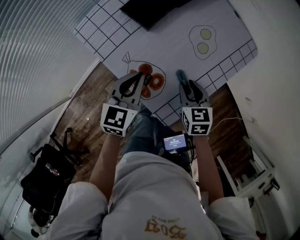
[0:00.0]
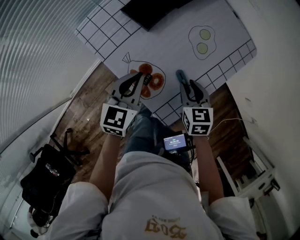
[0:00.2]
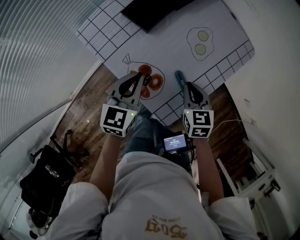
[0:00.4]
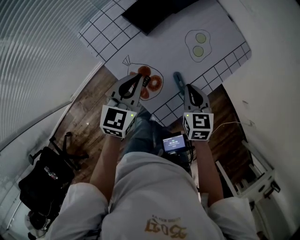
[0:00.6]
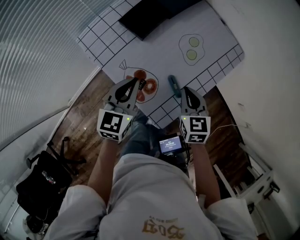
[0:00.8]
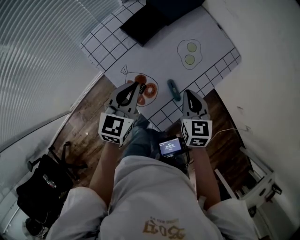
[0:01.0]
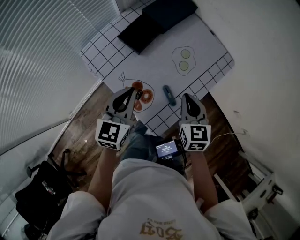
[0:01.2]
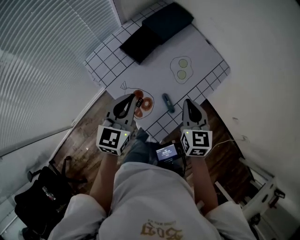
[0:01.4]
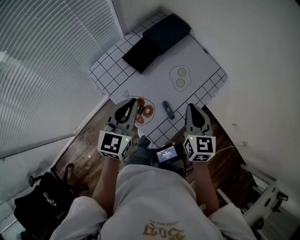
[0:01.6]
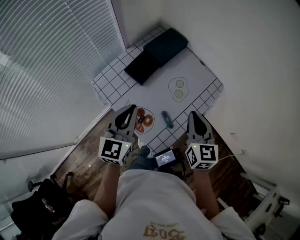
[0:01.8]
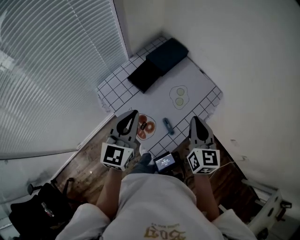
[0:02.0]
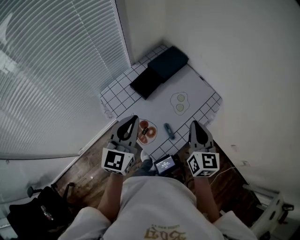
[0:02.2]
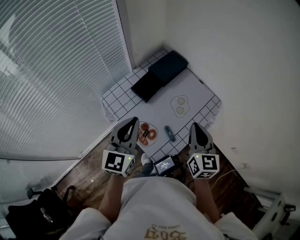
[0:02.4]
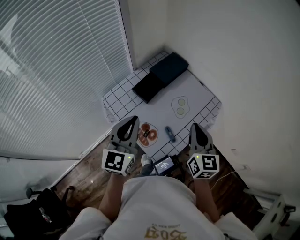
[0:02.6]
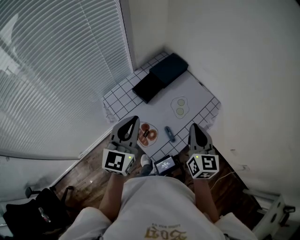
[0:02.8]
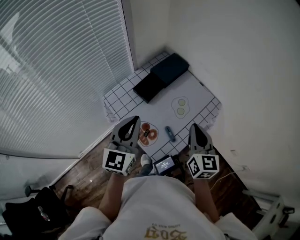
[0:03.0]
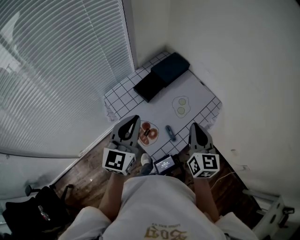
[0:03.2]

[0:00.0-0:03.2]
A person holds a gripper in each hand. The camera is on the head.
0:00.0 to 0:01.6: Both grippers move upward, roughly 15 cm. The right gripper changes its angle by some 30 degrees, and closes its fingers.
0:01.6 to 0:03.2: Both grippers travel together upward, about 10 cm.

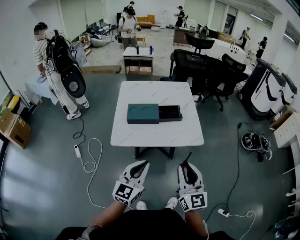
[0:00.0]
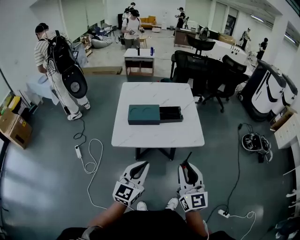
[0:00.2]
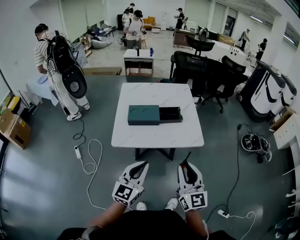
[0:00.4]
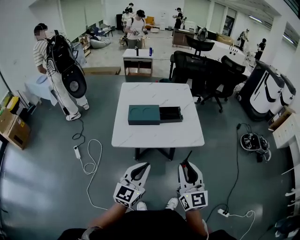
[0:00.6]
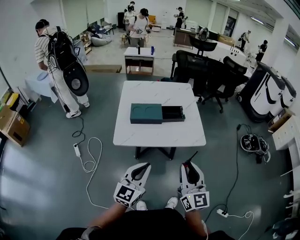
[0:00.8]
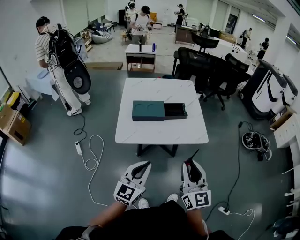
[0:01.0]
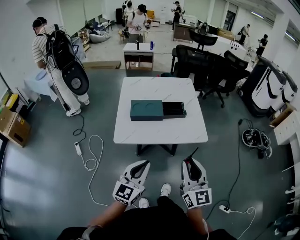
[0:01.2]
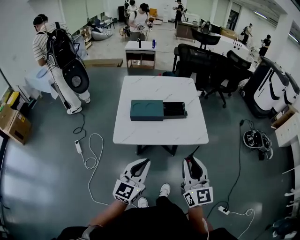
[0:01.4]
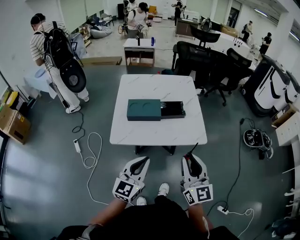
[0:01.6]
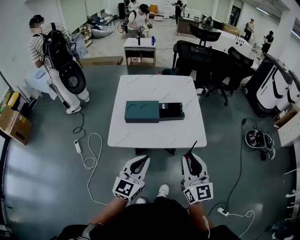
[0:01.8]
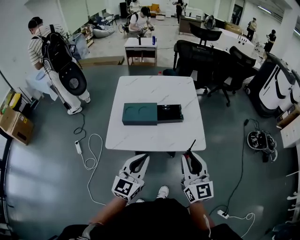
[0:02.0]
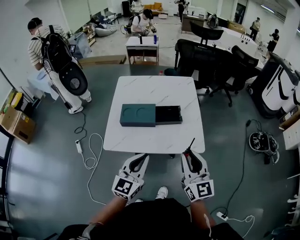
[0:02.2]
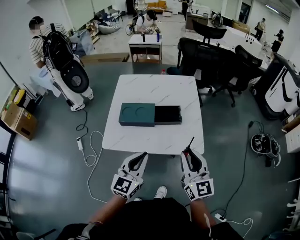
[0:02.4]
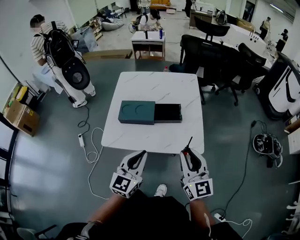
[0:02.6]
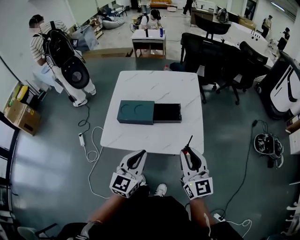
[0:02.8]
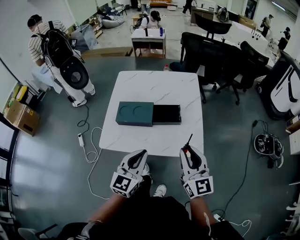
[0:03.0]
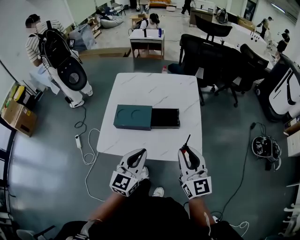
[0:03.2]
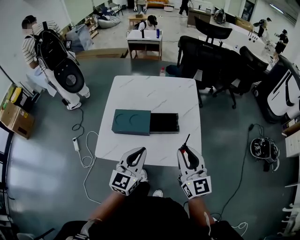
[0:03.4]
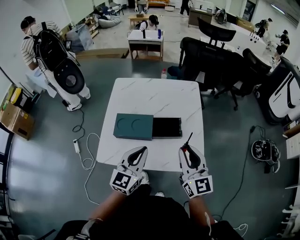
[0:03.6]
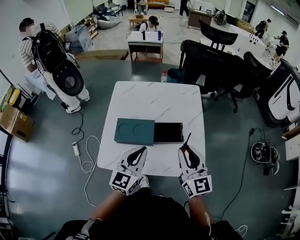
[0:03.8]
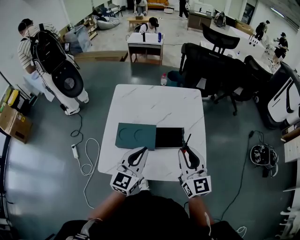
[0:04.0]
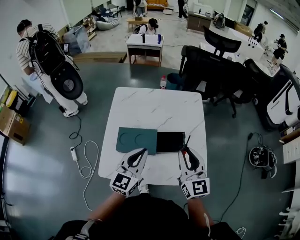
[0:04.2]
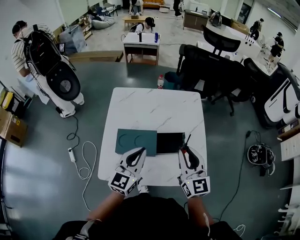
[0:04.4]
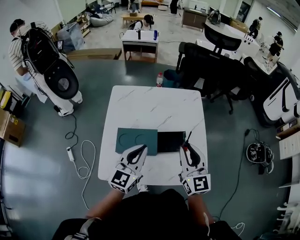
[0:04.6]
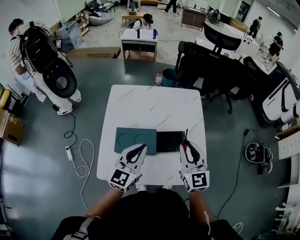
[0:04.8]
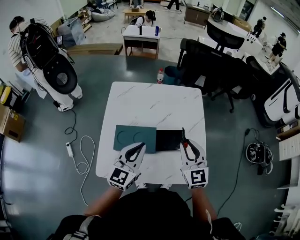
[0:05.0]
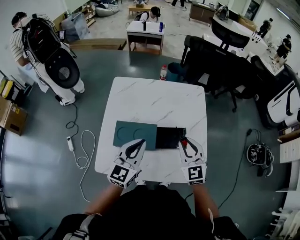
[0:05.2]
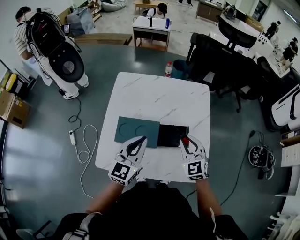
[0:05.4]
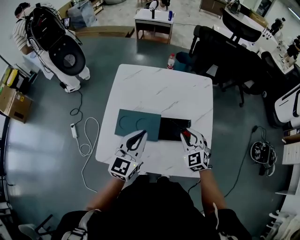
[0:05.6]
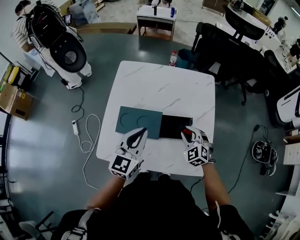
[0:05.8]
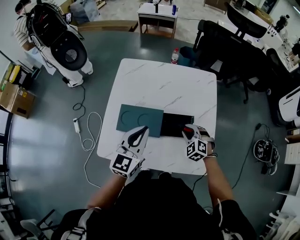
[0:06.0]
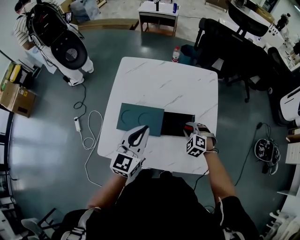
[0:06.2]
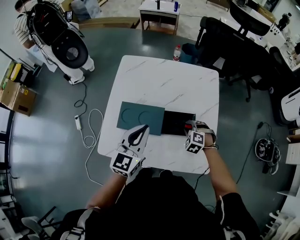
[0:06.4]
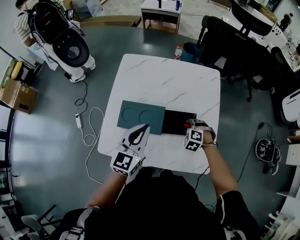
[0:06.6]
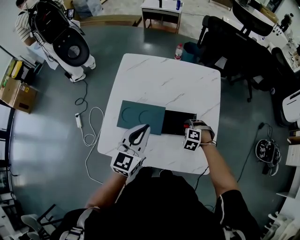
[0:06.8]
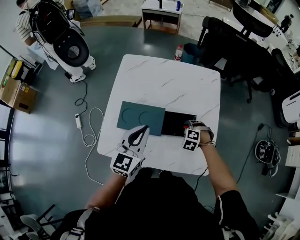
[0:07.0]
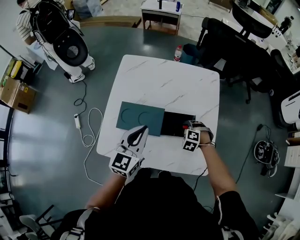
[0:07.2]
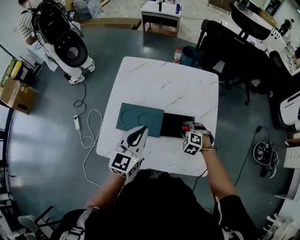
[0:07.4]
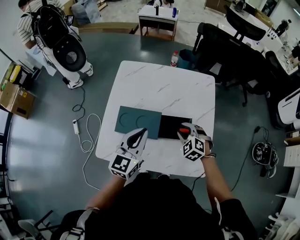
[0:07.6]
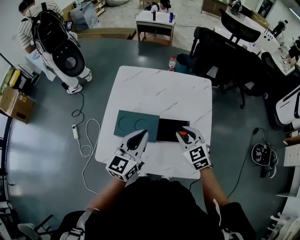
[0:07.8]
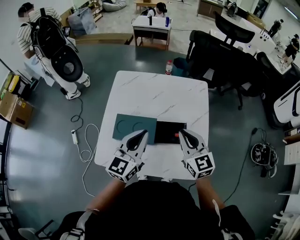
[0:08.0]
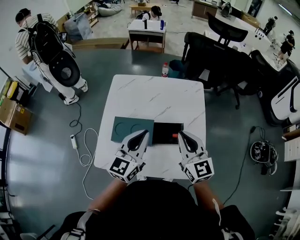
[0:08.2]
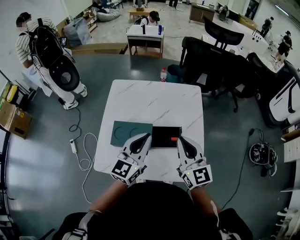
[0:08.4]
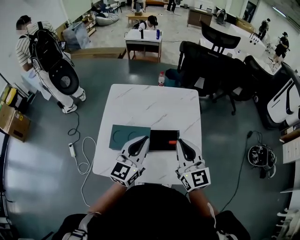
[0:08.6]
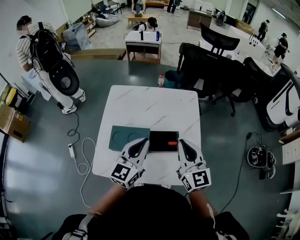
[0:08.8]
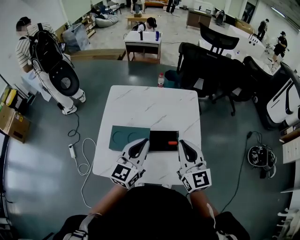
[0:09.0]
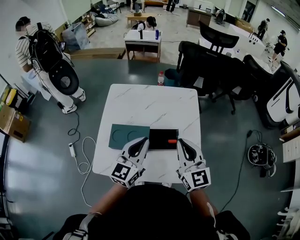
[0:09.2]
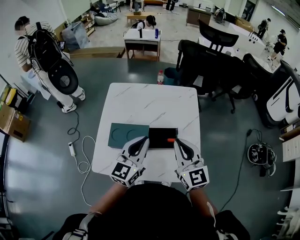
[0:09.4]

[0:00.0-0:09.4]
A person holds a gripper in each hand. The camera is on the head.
0:00.0 to 0:01.6: The right gripper is displaced forward by roughly 5 cm.
0:01.6 to 0:03.2: Both grippers move forward and to the right, about 20 cm.
0:03.2 to 0:04.8: The grippers both shift forward and to the left by approximately 20 cm.
0:04.8 to 0:06.2: The right gripper heads downward, covering some 25 cm, and tips its fingers downward by about 50 degrees.
0:06.2 to 0:07.8: The right gripper is displaced upward by some 15 cm, and changes its angle by approximately 40 degrees.
0:07.8 to 0:09.4: The right gripper is displaced upward and backward by about 15 cm, turns by approximately 30 degrees, and closes up, while the left gripper moves roughly 5 cm.

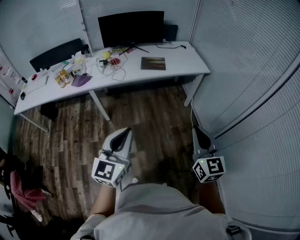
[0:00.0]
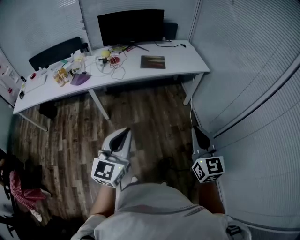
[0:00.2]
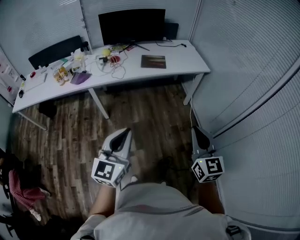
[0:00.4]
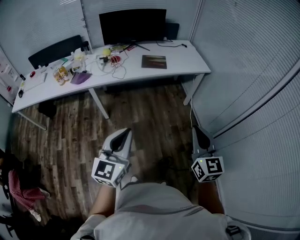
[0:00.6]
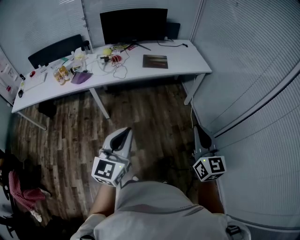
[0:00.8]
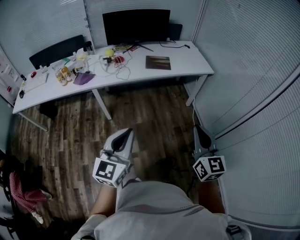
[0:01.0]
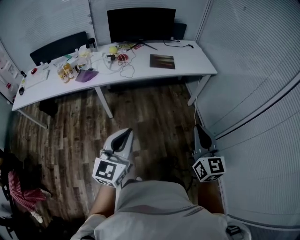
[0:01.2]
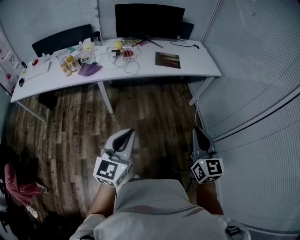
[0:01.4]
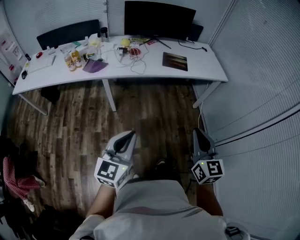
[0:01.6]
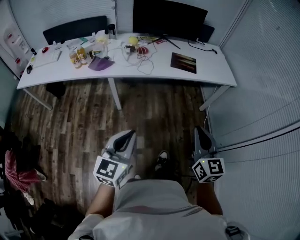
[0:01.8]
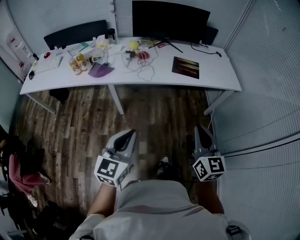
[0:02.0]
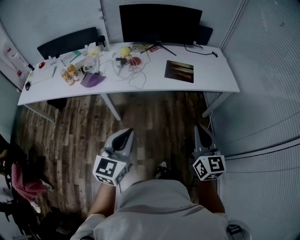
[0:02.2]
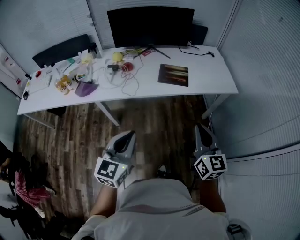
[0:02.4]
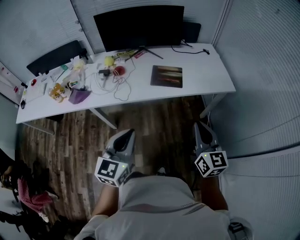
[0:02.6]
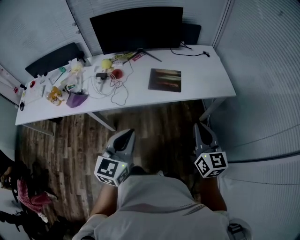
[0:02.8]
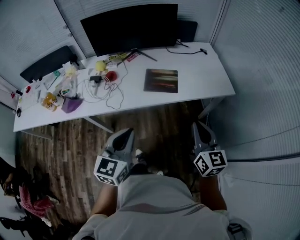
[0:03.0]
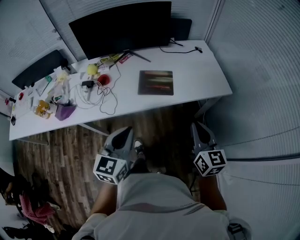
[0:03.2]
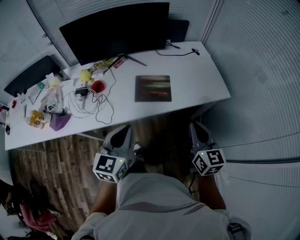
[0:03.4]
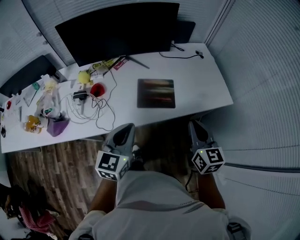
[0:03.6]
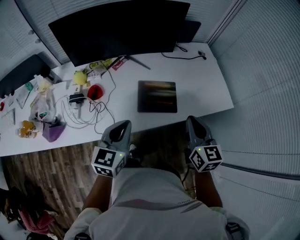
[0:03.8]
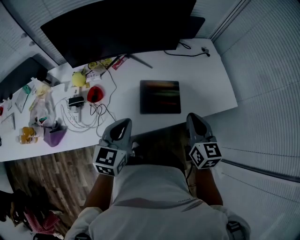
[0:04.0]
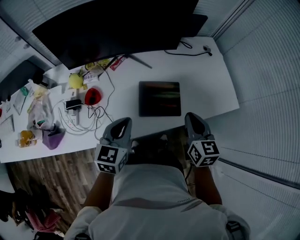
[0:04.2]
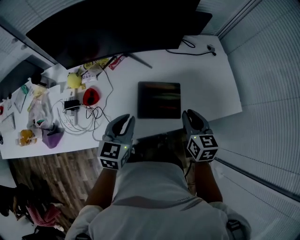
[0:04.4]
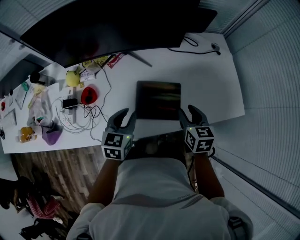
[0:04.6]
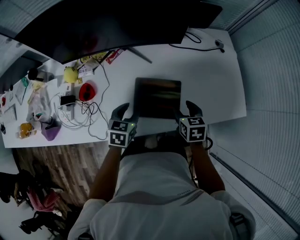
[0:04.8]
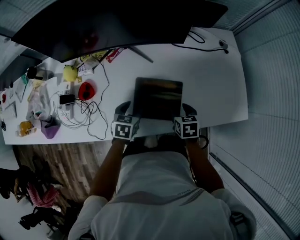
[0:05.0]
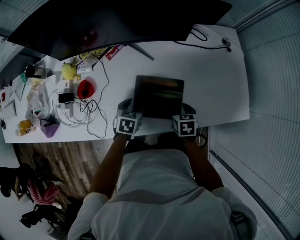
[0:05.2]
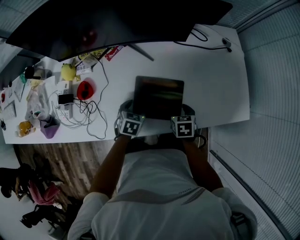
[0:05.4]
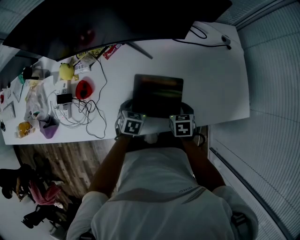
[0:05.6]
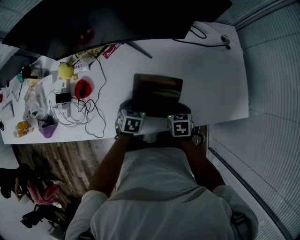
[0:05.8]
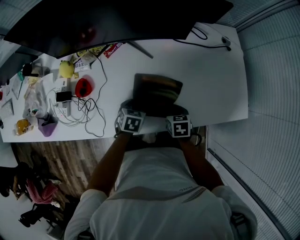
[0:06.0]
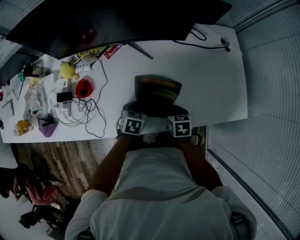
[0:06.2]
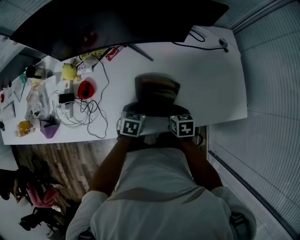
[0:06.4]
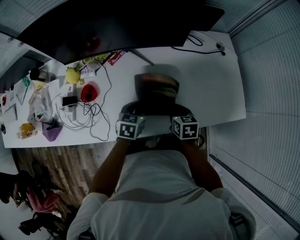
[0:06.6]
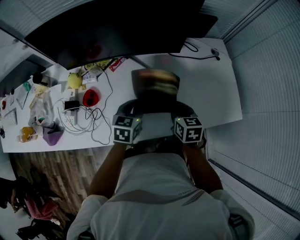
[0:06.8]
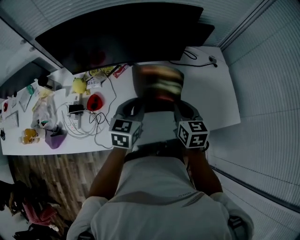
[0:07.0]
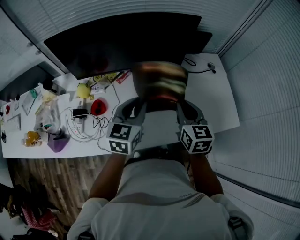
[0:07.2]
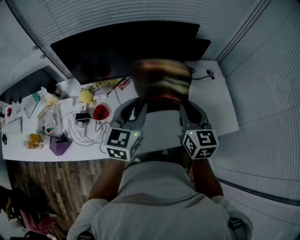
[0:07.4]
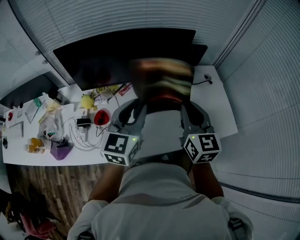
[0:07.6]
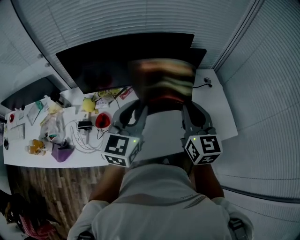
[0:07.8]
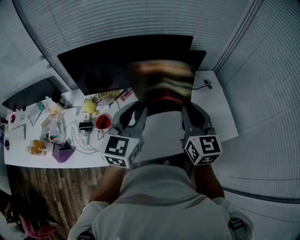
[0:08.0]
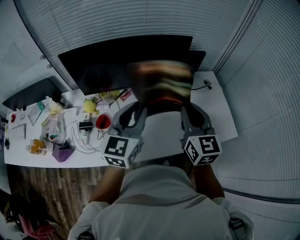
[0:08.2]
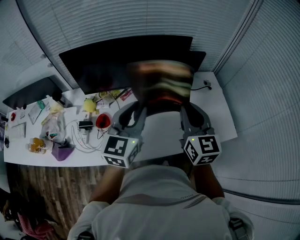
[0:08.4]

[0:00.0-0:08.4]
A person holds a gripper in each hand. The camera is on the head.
0:00.0 to 0:01.4: Both grippers move to the left, roughly 15 cm.
0:01.4 to 0:02.8: Both grippers are carried forward, some 40 cm.
0:02.8 to 0:04.2: Both grippers move forward, approximately 40 cm. The right gripper turns by roughly 20 degrees.
0:04.2 to 0:05.6: The right gripper shifts approximately 25 cm downward, tilts its fingers some 40 degrees downward, and opens. Meanwhile the left gripper travels downward and forward by about 30 cm, points its fingers some 30 degrees further downward, and opens.
0:05.6 to 0:07.0: Both grippers move upward, some 25 cm. The left gripper points its fingers about 30 degrees further upward, and closes its fingers; the right gripper angles its fingers upward, by about 30 degrees, and closes up.
0:07.0 to 0:08.4: Both grippers travel together upward, some 20 cm. The right gripper rotates some 30 degrees; the left gripper changes its angle by roughly 30 degrees.

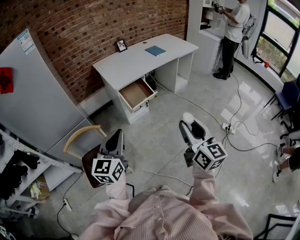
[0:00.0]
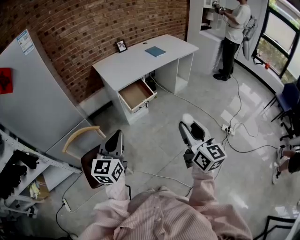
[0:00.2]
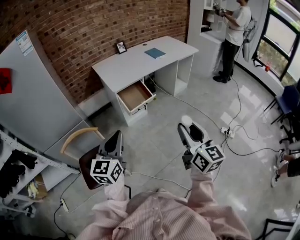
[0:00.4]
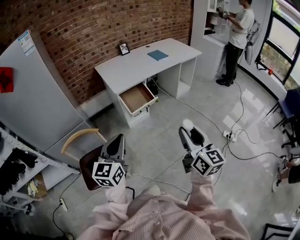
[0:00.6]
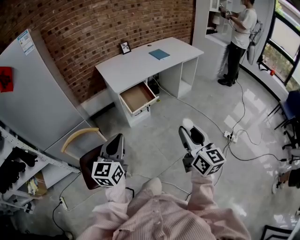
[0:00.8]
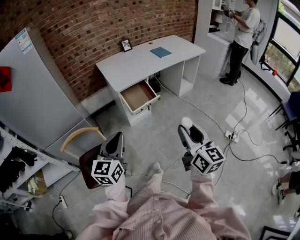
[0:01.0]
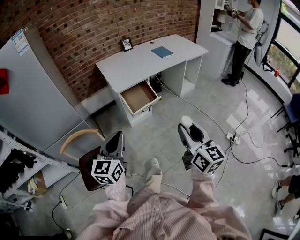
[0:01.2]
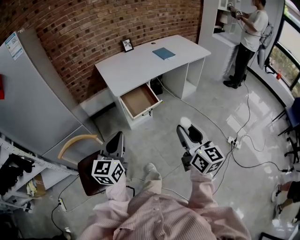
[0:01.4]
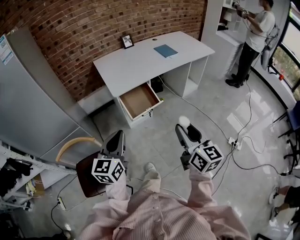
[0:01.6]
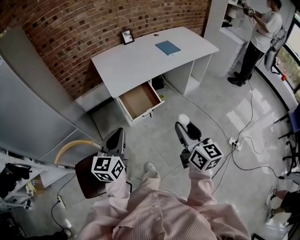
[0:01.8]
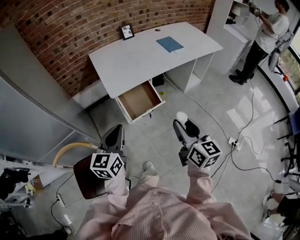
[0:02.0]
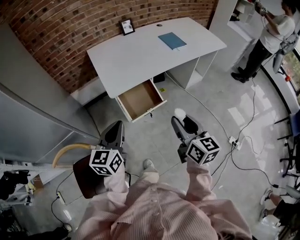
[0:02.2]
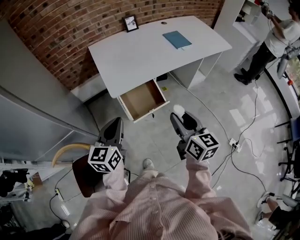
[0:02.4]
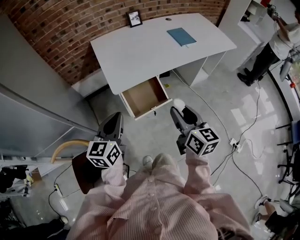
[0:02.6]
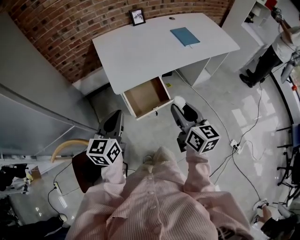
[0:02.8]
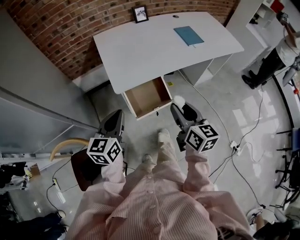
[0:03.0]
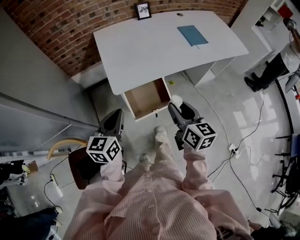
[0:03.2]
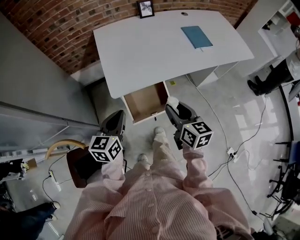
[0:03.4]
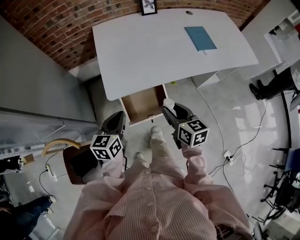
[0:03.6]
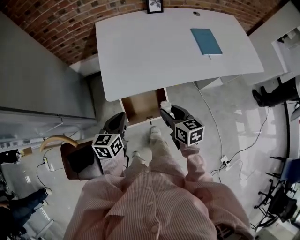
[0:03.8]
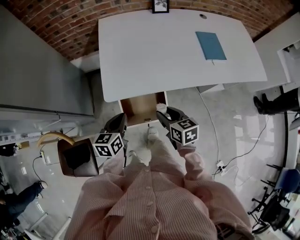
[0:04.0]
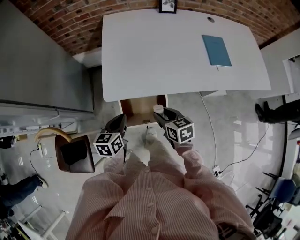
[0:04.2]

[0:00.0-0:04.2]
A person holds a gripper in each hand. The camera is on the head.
0:00.0 to 0:01.4: Both grippers move forward, approximately 15 cm.
0:01.4 to 0:02.8: Both grippers travel together forward, about 30 cm.
0:02.8 to 0:04.2: Both grippers travel together downward, some 20 cm. The left gripper turns by some 30 degrees; the right gripper changes its angle by some 40 degrees.
